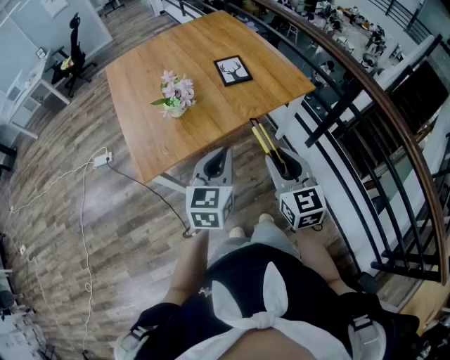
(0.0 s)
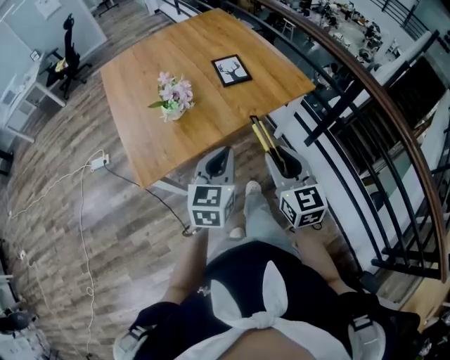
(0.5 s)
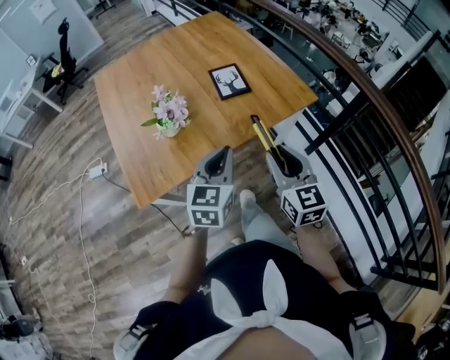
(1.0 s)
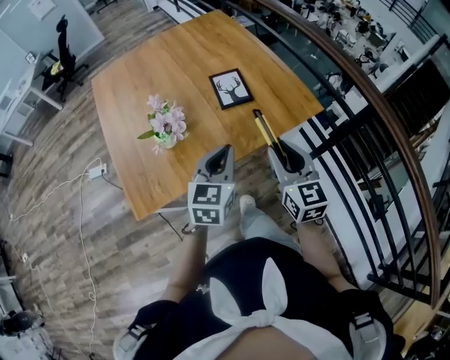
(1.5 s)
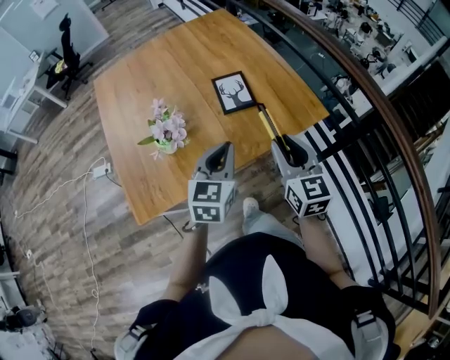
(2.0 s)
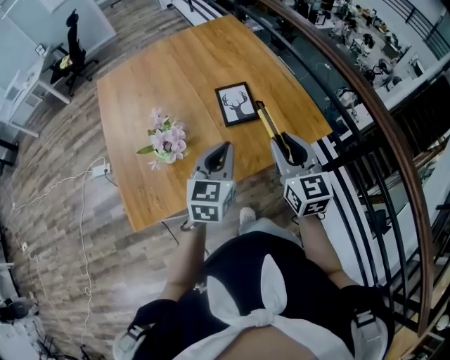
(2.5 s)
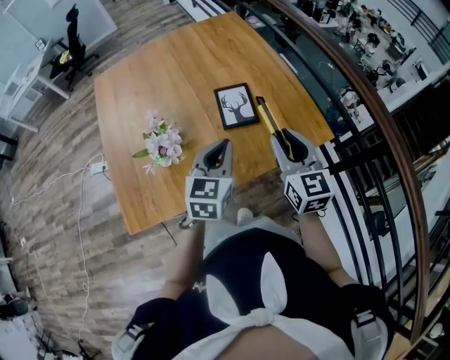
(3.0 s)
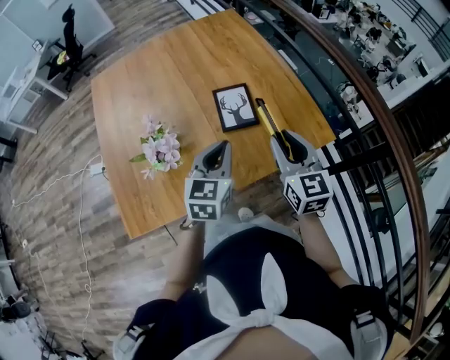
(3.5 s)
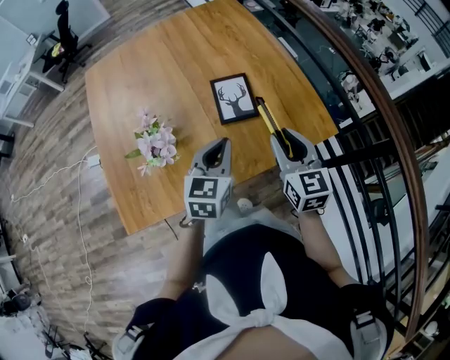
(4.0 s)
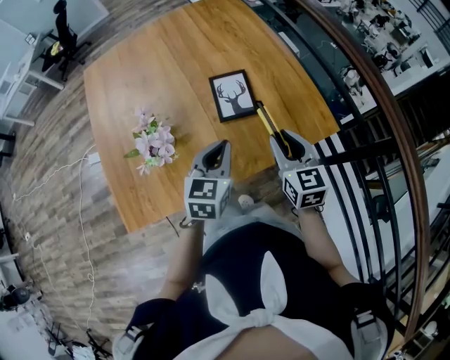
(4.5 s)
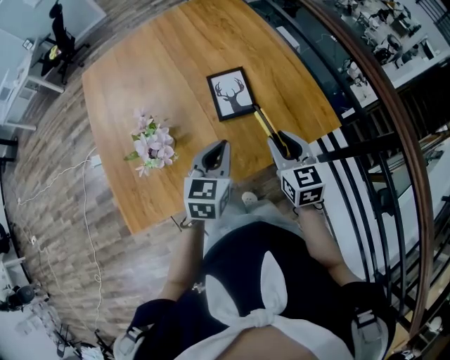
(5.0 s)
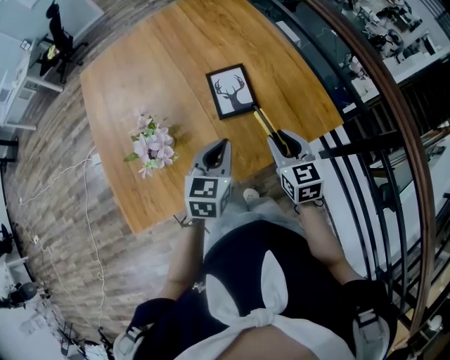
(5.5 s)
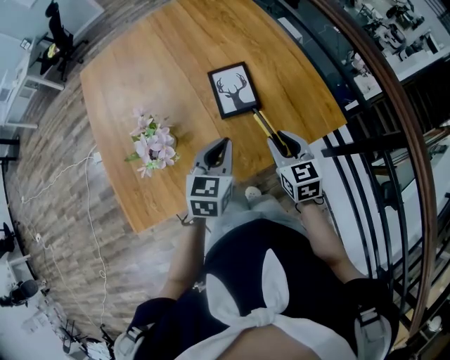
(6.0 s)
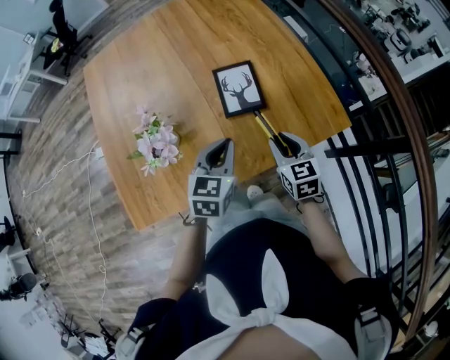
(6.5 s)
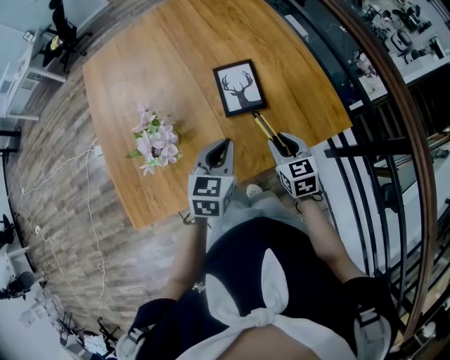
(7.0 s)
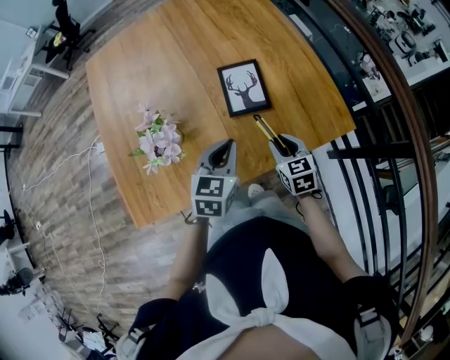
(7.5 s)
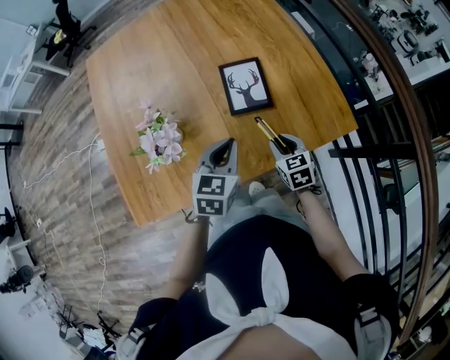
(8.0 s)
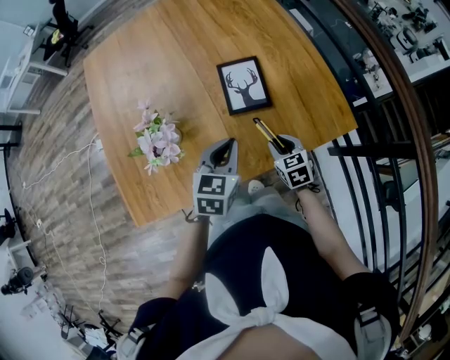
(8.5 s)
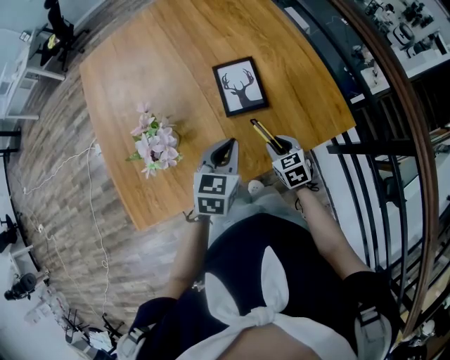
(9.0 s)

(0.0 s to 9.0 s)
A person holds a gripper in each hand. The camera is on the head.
0.0 s - 2.0 s: Both grippers move forward, roughly 25 cm.
2.0 s - 4.5 s: The grippers both shift forward and downward by approximately 15 cm.
4.5 s - 7.0 s: The right gripper heads downward, covering about 10 cm.
7.0 s - 9.0 s: The right gripper shifts about 10 cm downward.

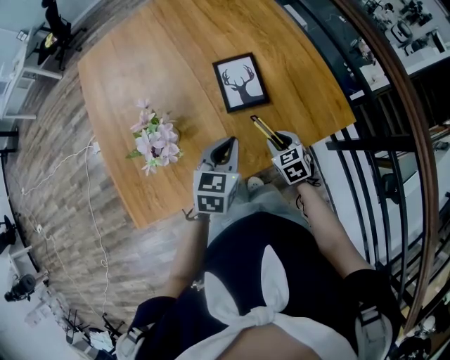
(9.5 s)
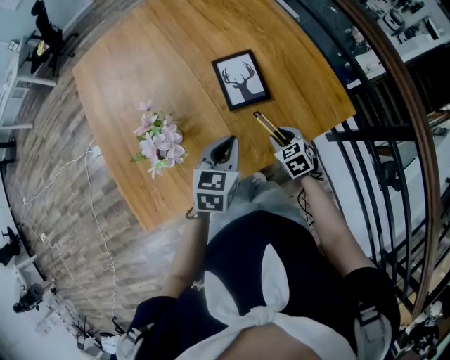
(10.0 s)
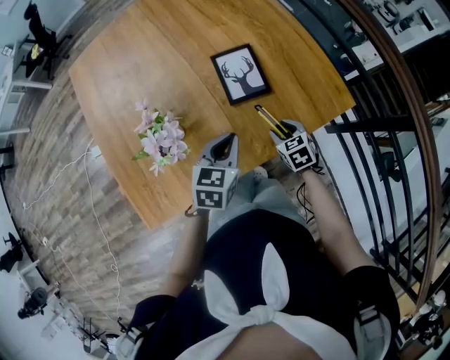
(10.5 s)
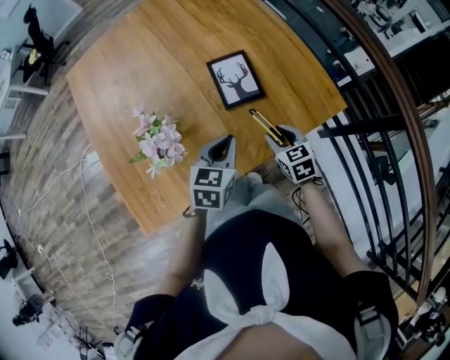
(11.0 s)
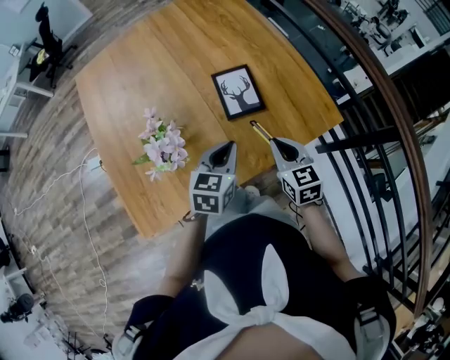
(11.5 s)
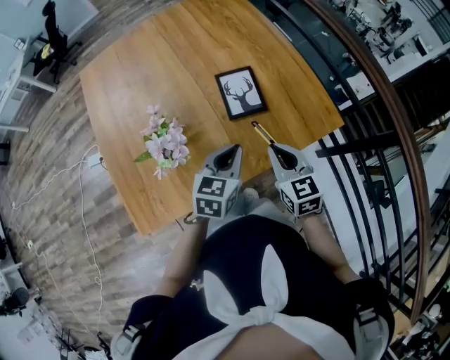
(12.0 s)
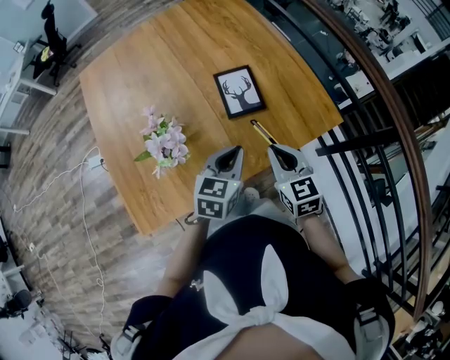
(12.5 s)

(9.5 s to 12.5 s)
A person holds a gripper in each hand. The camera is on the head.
9.5 s - 11.0 s: The right gripper goes some 5 cm upward.
11.0 s - 12.5 s: The right gripper goes some 15 cm upward, and closes its fingers.

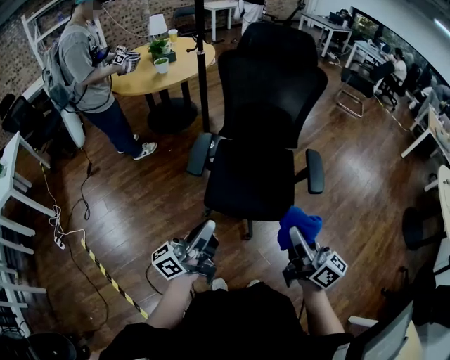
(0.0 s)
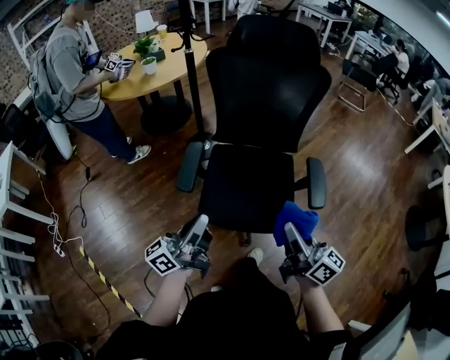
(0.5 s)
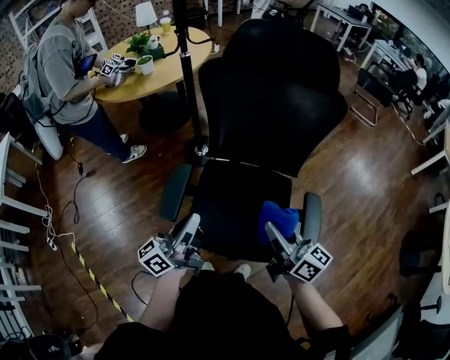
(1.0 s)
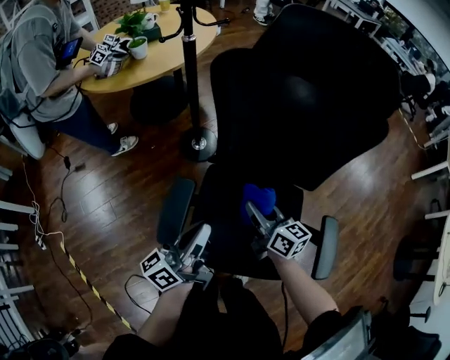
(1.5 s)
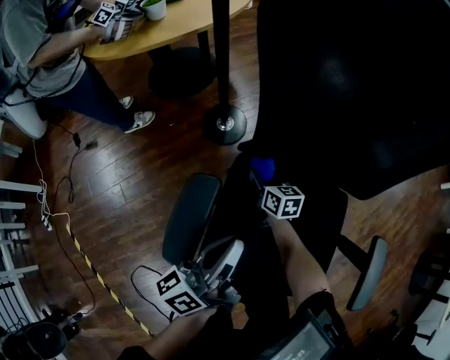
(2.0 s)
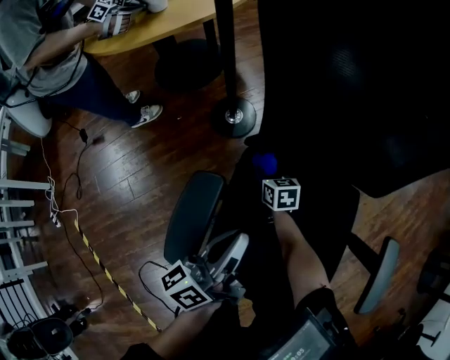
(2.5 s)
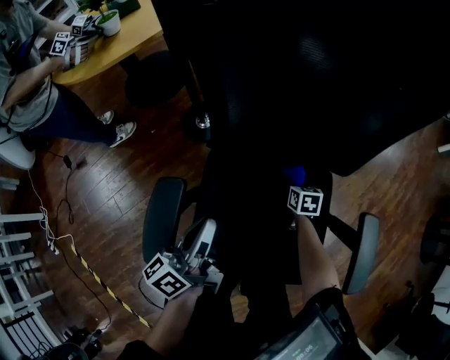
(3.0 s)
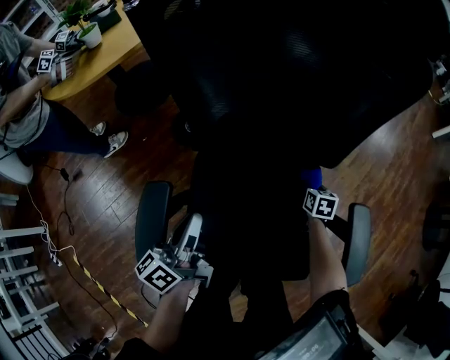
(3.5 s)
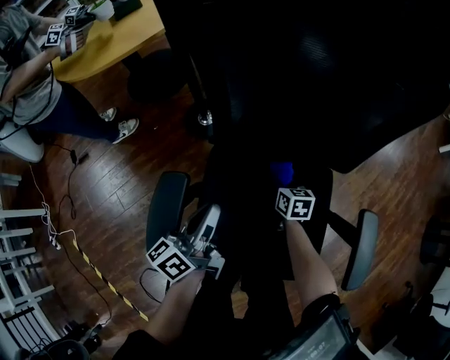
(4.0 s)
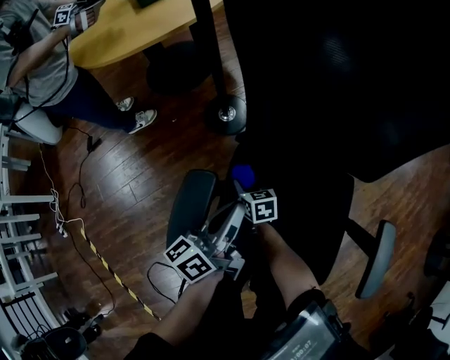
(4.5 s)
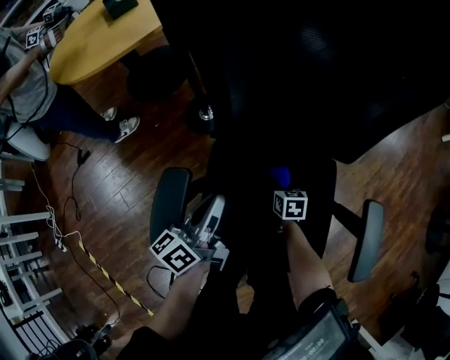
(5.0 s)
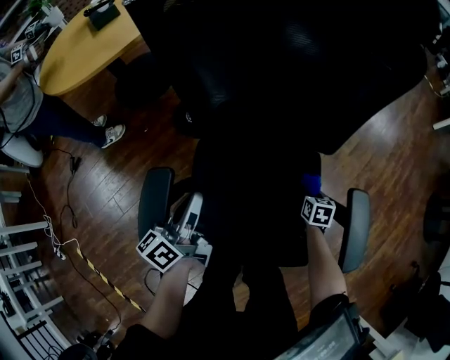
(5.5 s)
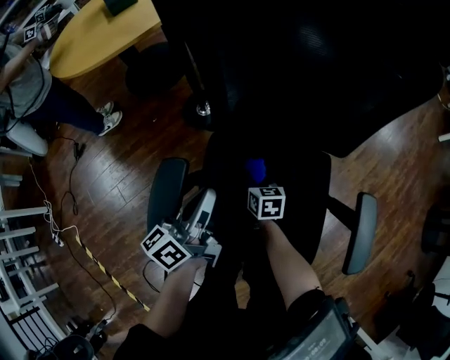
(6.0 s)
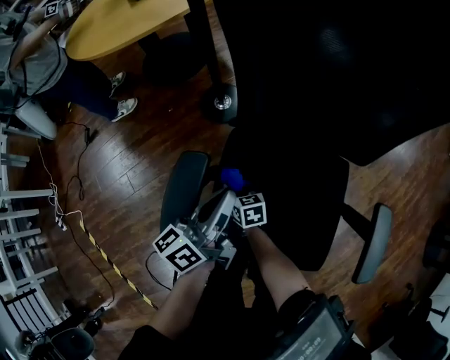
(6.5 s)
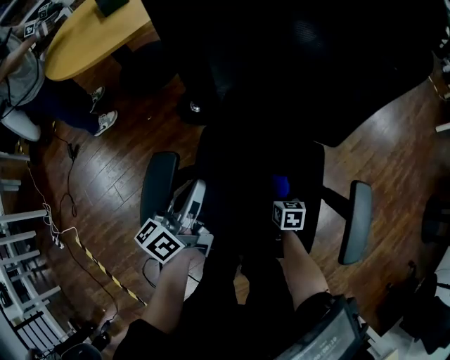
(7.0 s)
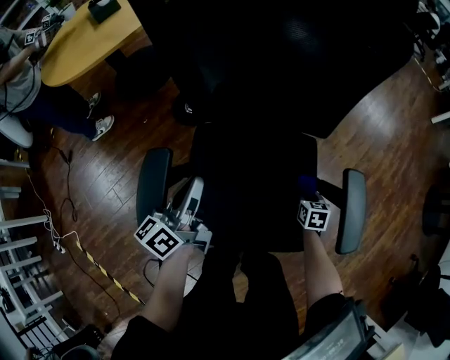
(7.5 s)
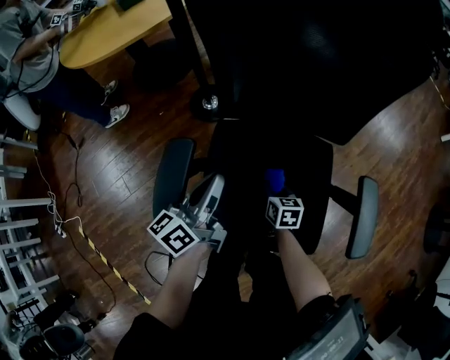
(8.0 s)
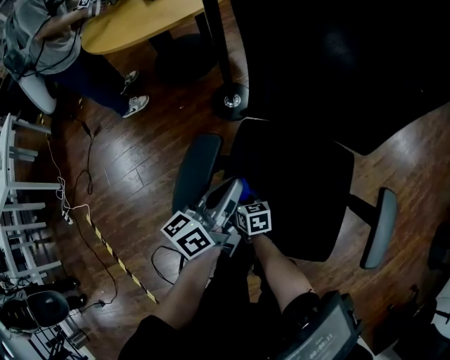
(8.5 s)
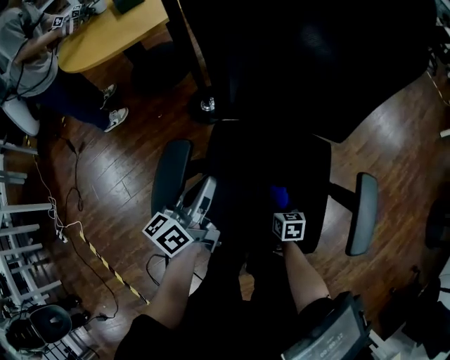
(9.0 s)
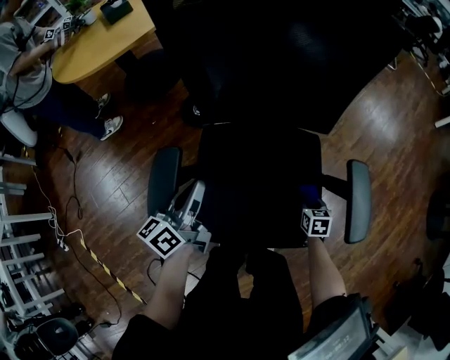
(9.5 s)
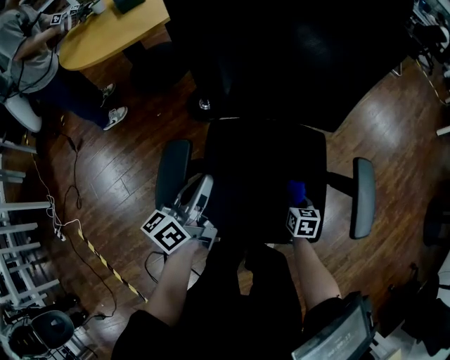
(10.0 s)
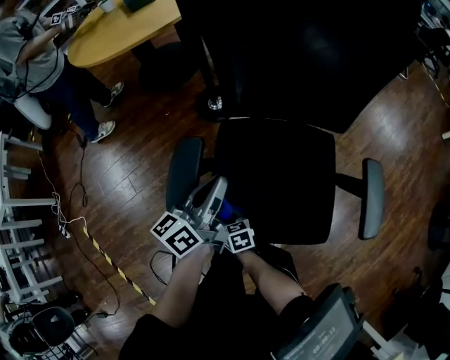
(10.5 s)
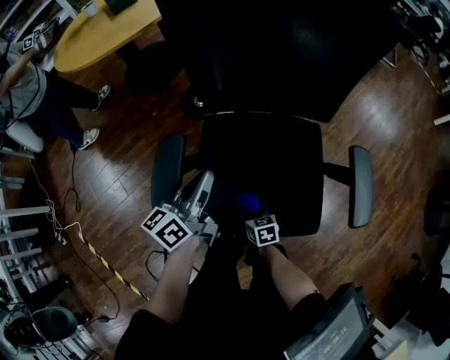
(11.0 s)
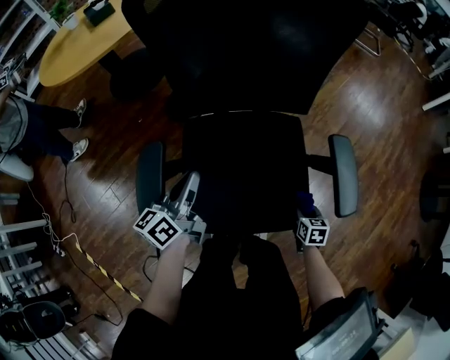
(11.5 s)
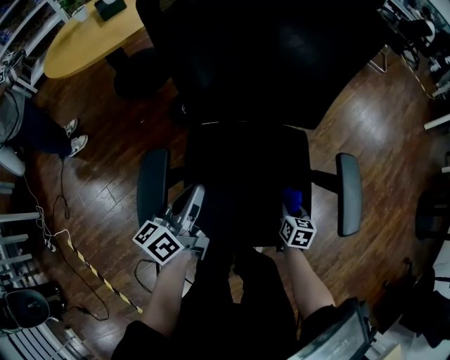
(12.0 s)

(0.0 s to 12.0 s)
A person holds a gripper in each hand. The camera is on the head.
0.0 s - 2.0 s: The right gripper travels forward and downward by some 70 cm, and tips its fingers downward by approximately 40 degrees. The left gripper moves forward and downward, approximately 40 cm, and swivels approximately 20 degrees.
2.0 s - 4.0 s: The right gripper heads to the right, covering approximately 15 cm, while the left gripper heads downward, covering some 5 cm.
4.0 s - 6.0 s: The right gripper moves left and right over roughly 40 cm, changing direction 2 times.
6.0 s - 8.0 s: The right gripper goes left and right, roughly 40 cm each way, reversing 2 times.
8.0 s - 10.0 s: The right gripper swings left and right, some 35 cm each way, with 2 reversals.
10.0 s - 12.0 s: The right gripper goes left and right, approximately 40 cm each way, reversing 2 times.

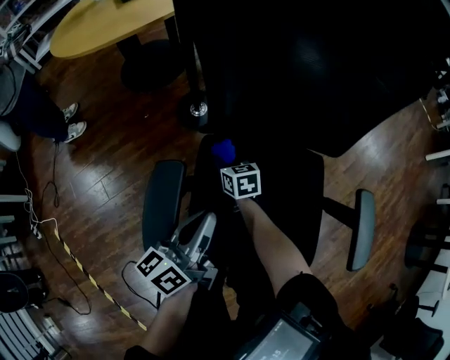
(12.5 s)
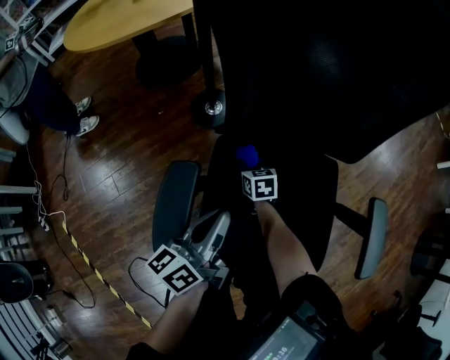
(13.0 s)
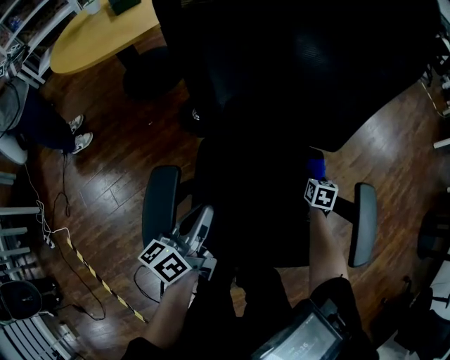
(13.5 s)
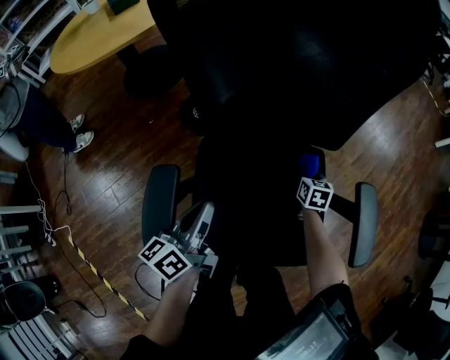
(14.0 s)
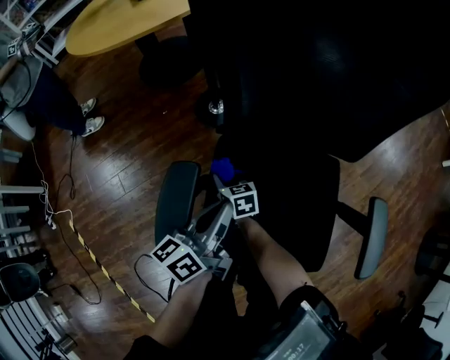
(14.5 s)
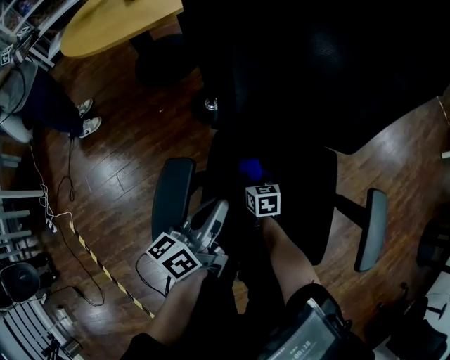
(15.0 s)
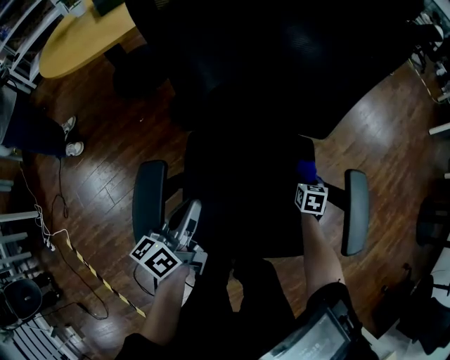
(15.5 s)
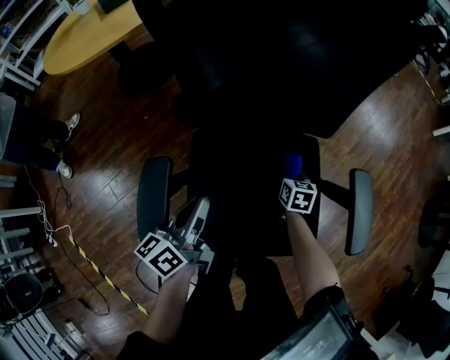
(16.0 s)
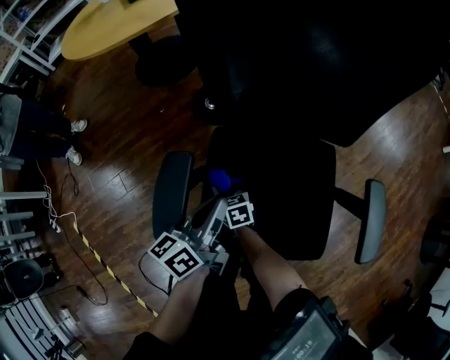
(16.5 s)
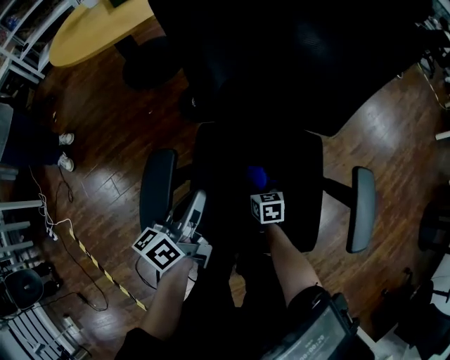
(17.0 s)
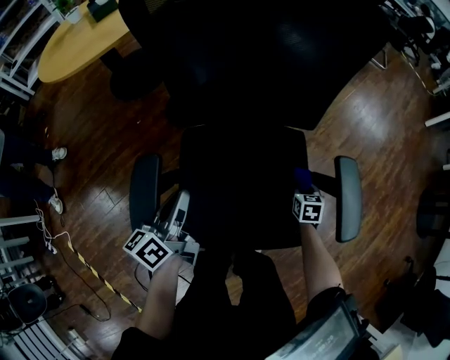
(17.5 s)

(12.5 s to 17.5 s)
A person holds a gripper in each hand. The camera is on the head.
15.0 s - 17.5 s: The right gripper ends up approximately 30 cm from where it was, and turns by approximately 20 degrees.
